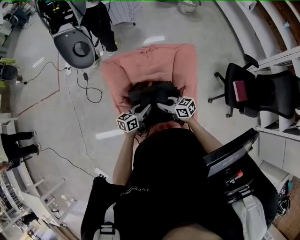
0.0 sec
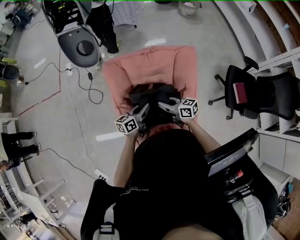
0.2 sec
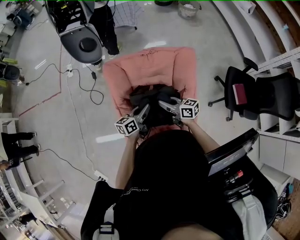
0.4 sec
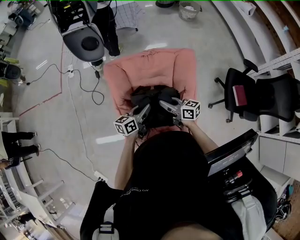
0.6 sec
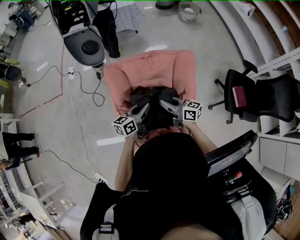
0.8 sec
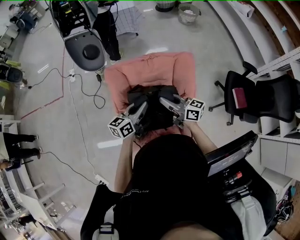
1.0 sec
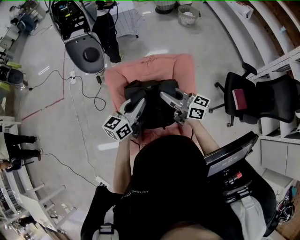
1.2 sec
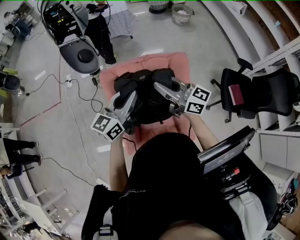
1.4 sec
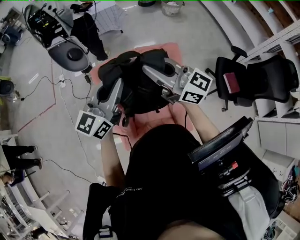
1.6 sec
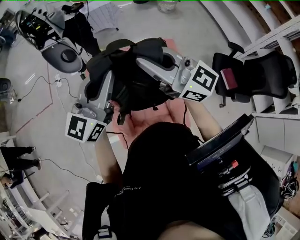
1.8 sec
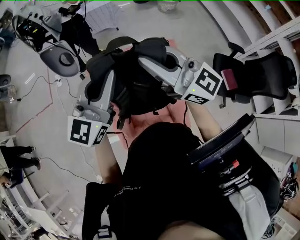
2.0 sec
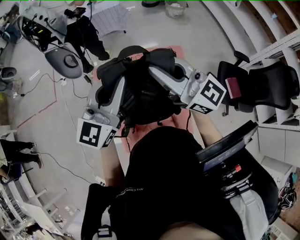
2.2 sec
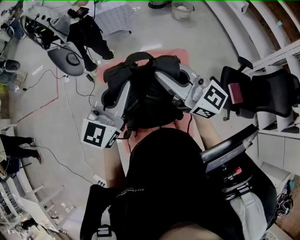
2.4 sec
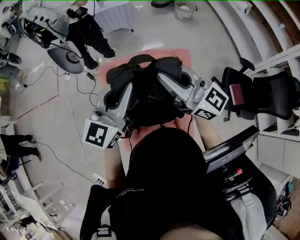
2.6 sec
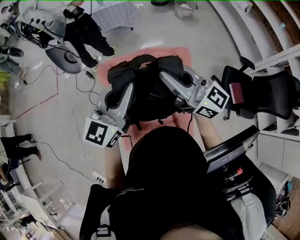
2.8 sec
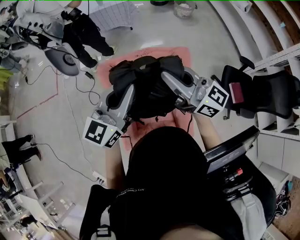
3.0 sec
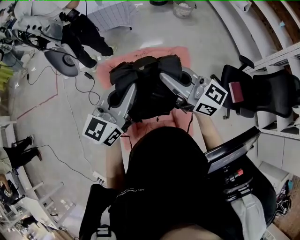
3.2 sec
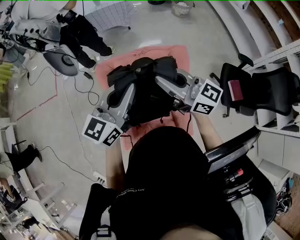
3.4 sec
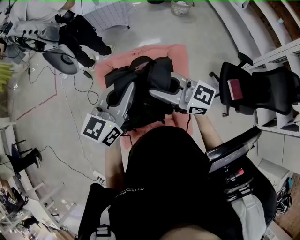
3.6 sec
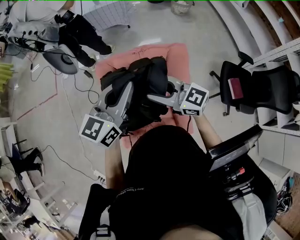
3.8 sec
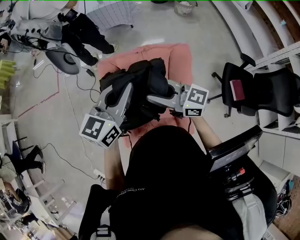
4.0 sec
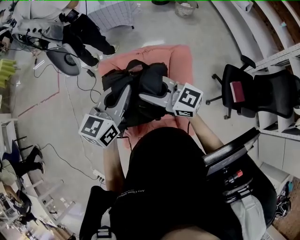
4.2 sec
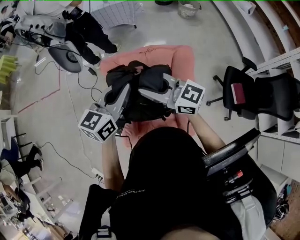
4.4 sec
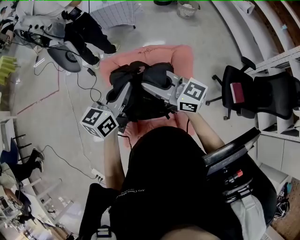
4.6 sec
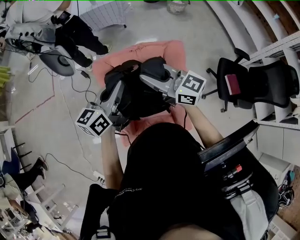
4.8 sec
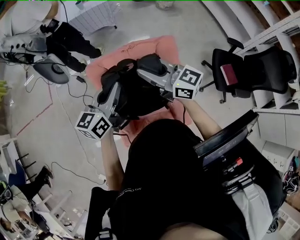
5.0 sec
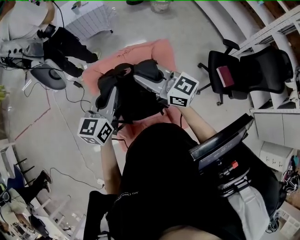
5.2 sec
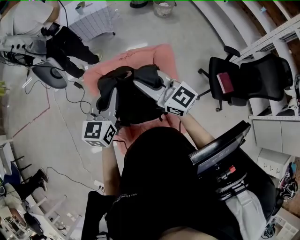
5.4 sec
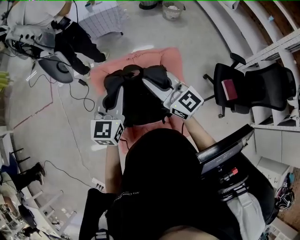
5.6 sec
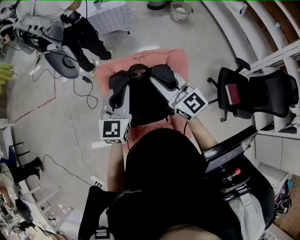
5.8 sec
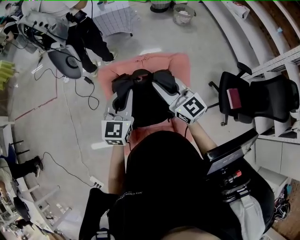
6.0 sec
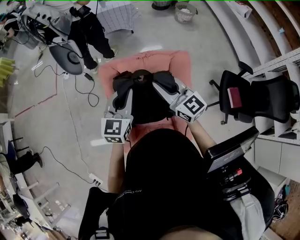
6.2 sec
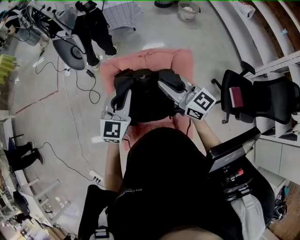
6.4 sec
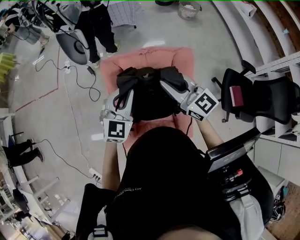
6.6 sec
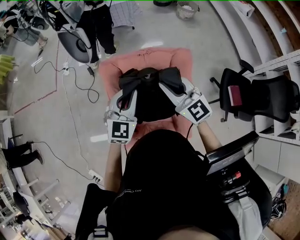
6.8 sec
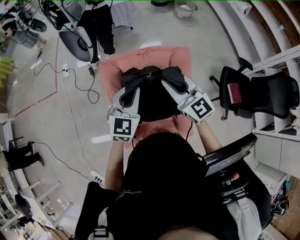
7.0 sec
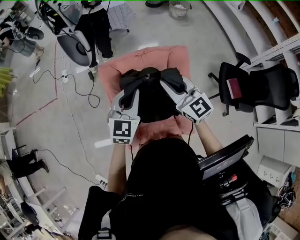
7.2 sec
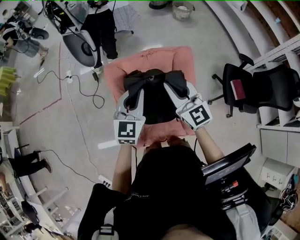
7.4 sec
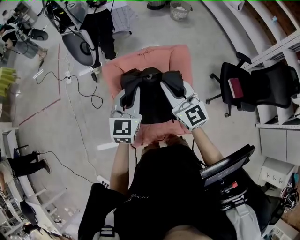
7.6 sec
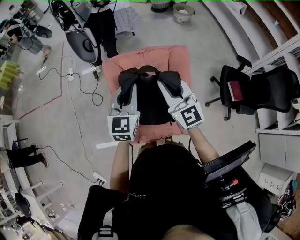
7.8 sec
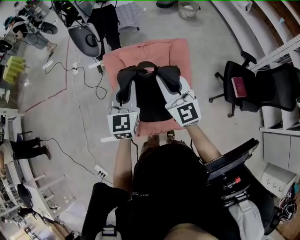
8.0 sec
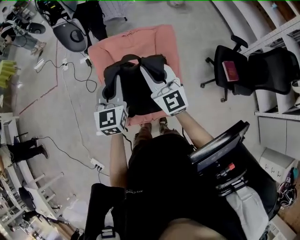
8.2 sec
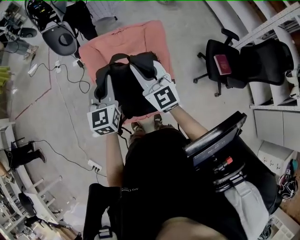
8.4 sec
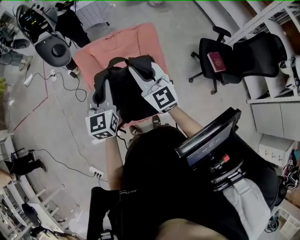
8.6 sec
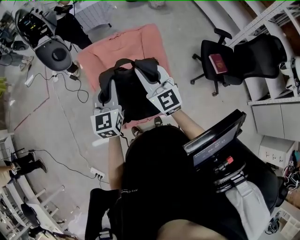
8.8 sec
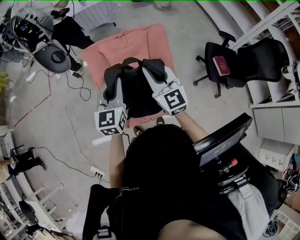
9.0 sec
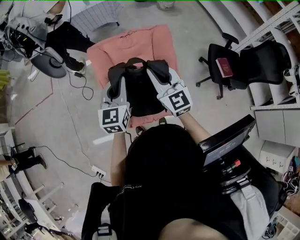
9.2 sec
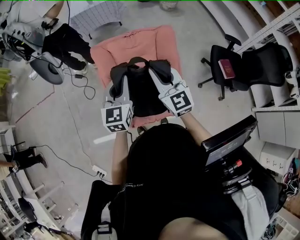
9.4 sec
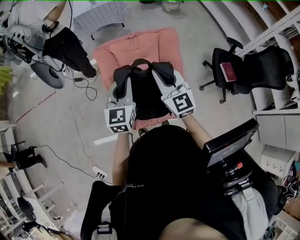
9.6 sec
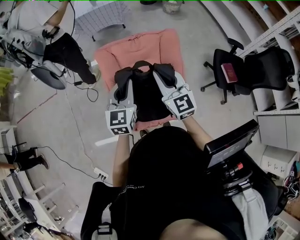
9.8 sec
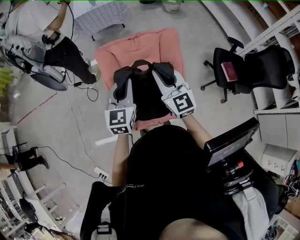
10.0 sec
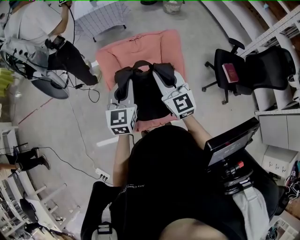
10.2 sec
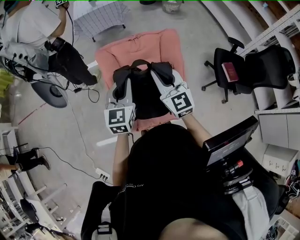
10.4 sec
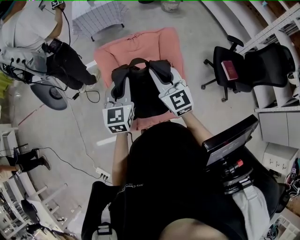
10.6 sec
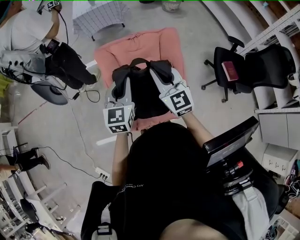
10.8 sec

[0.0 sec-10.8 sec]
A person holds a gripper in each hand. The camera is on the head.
0.0 sec to 1.6 sec: Both grippers move upward, approximately 35 cm. The left gripper changes its angle by some 40 degrees. The right gripper angles its fingers upward, by about 30 degrees.
3.0 sec to 4.6 sec: The left gripper shifts approximately 5 cm downward, and turns by roughly 20 degrees; the right gripper travels downward and to the left by approximately 10 cm.
4.6 sec to 6.2 sec: The left gripper rotates about 30 degrees; the right gripper ends up some 5 cm from where it was, and turns by about 20 degrees.
6.2 sec to 7.8 sec: The grippers both shift backward by roughly 10 cm. The right gripper rotates some 20 degrees.
7.8 sec to 9.2 sec: Both grippers travel together backward, approximately 10 cm.
9.2 sec to 10.8 sec: The grippers stay close to where they were, moving slightly.

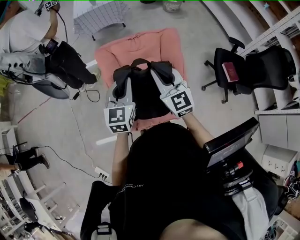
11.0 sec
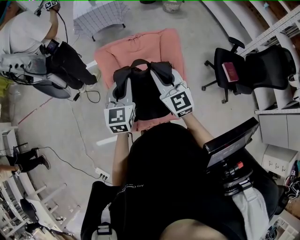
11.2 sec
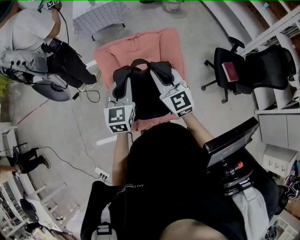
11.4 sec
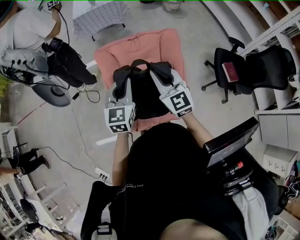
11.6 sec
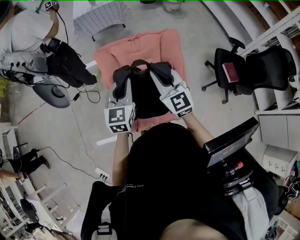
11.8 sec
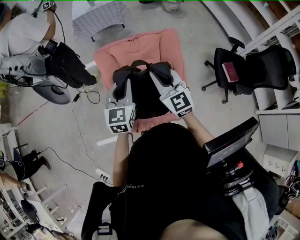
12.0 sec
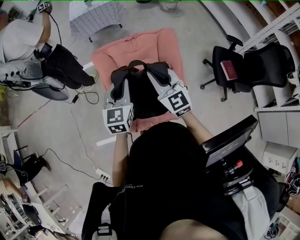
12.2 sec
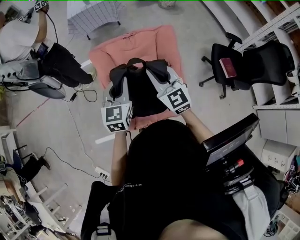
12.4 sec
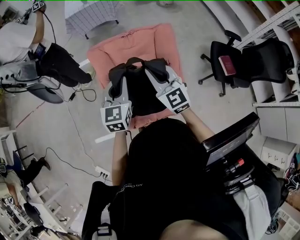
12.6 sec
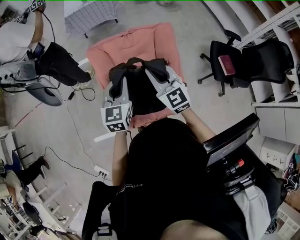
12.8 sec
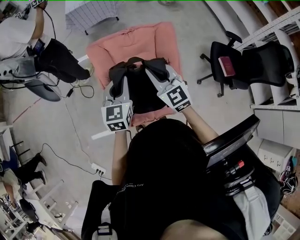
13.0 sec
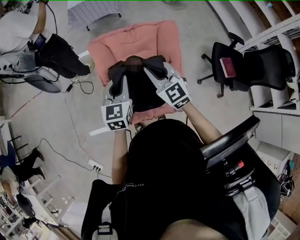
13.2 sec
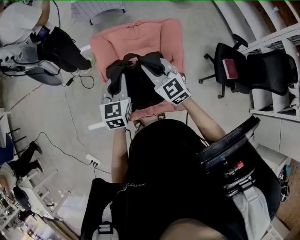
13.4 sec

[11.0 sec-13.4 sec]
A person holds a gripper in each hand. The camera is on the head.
11.0 sec to 12.2 sec: The grippers stay close to where they were, moving slightly.
12.2 sec to 13.4 sec: The grippers move only a little.

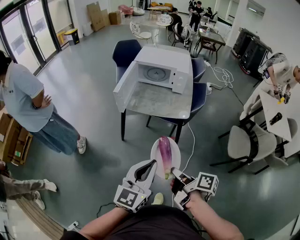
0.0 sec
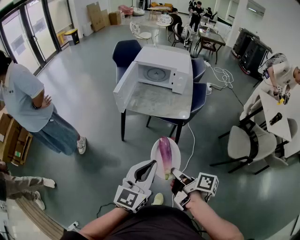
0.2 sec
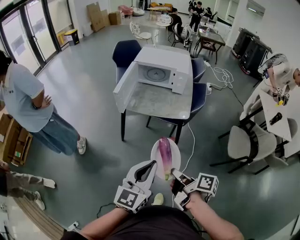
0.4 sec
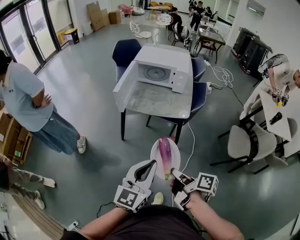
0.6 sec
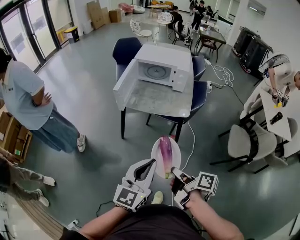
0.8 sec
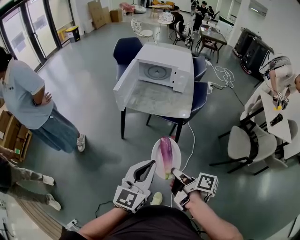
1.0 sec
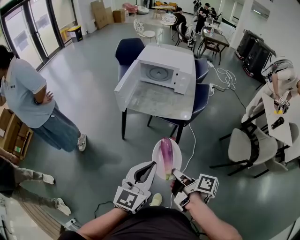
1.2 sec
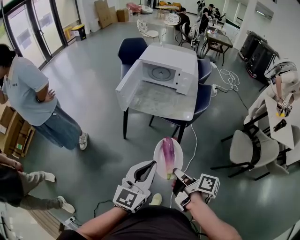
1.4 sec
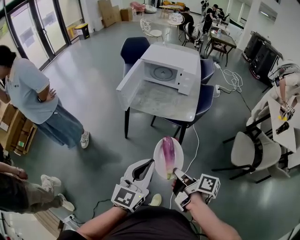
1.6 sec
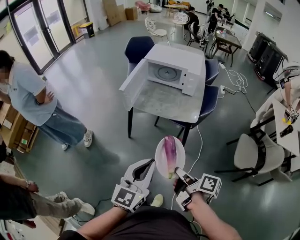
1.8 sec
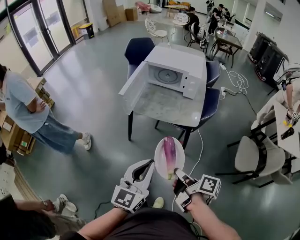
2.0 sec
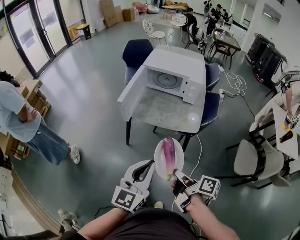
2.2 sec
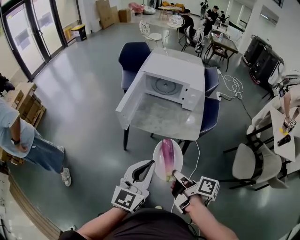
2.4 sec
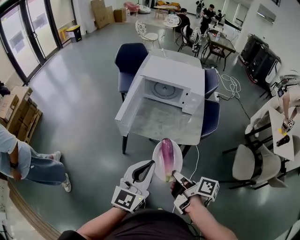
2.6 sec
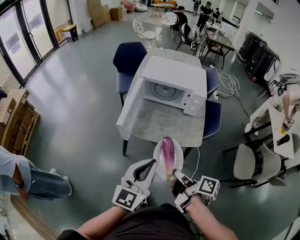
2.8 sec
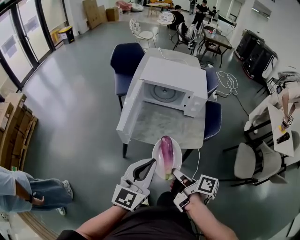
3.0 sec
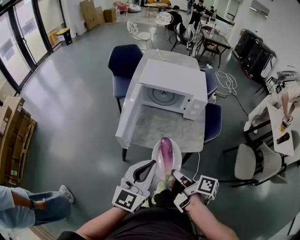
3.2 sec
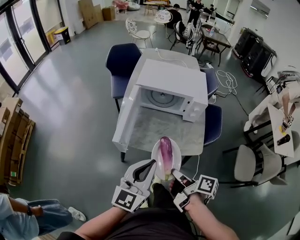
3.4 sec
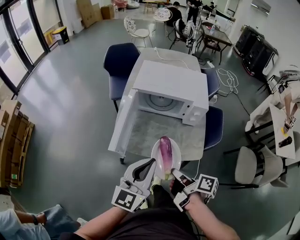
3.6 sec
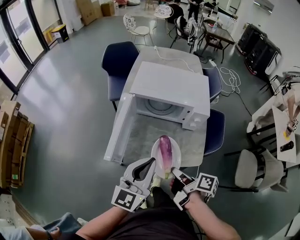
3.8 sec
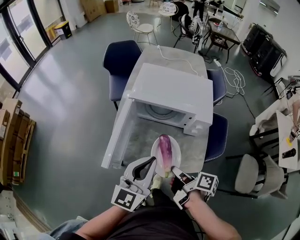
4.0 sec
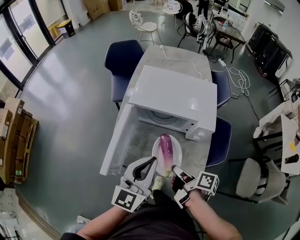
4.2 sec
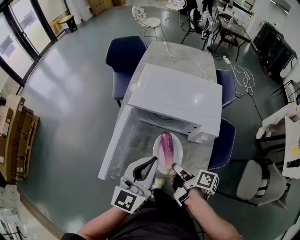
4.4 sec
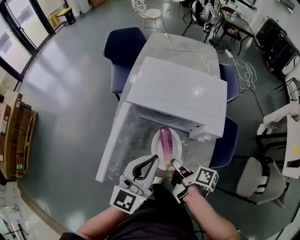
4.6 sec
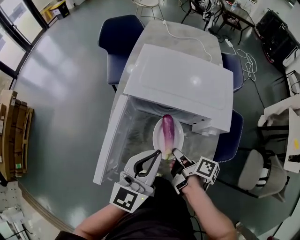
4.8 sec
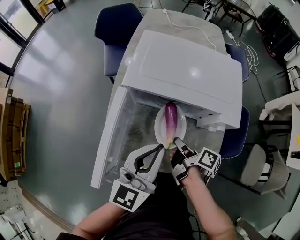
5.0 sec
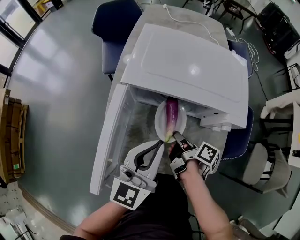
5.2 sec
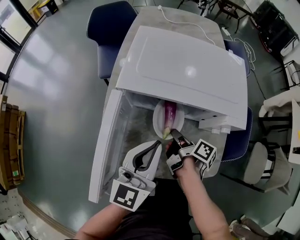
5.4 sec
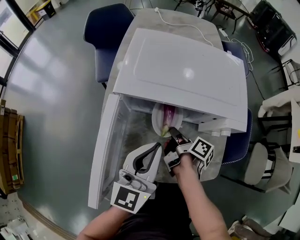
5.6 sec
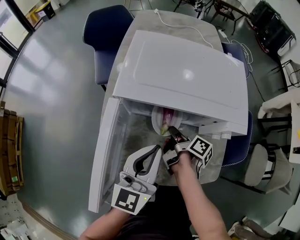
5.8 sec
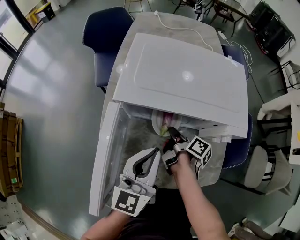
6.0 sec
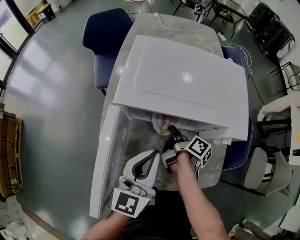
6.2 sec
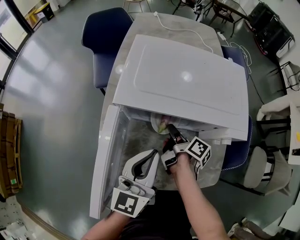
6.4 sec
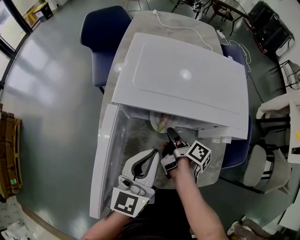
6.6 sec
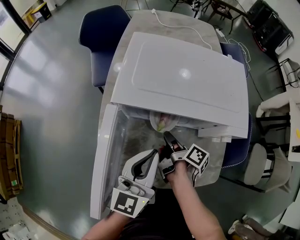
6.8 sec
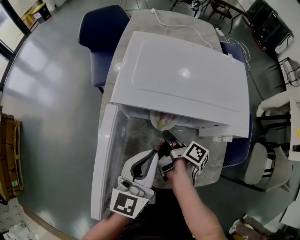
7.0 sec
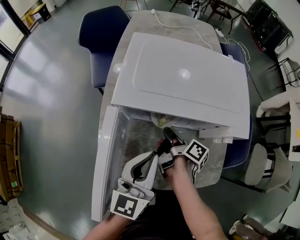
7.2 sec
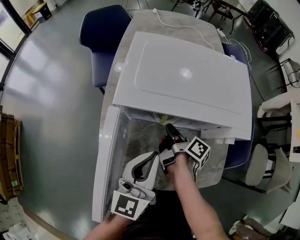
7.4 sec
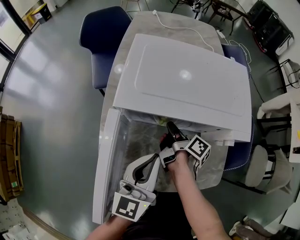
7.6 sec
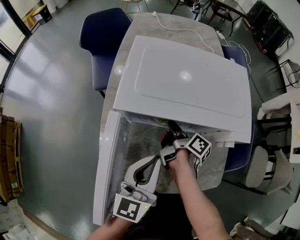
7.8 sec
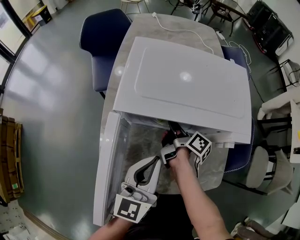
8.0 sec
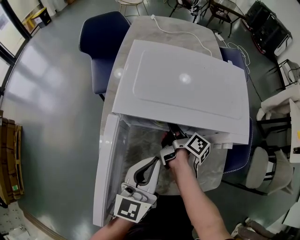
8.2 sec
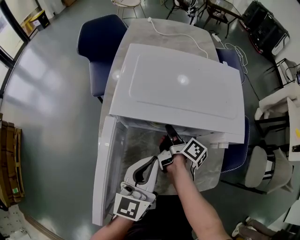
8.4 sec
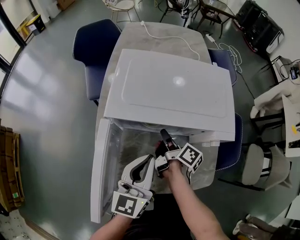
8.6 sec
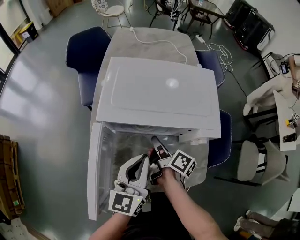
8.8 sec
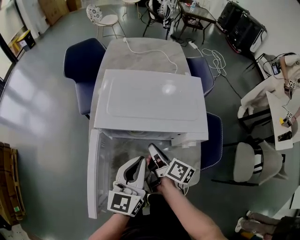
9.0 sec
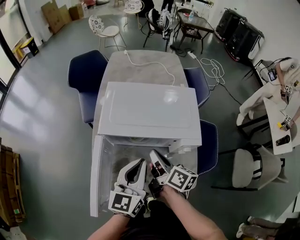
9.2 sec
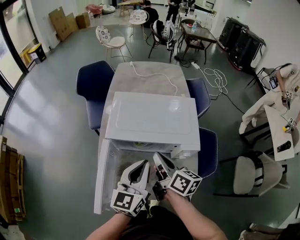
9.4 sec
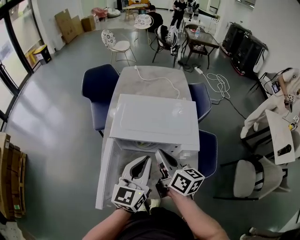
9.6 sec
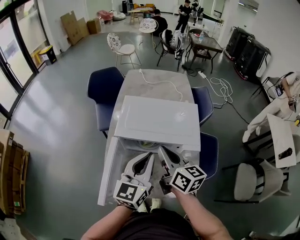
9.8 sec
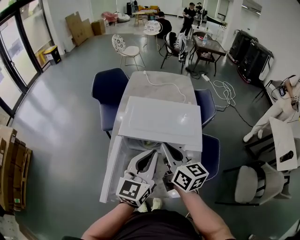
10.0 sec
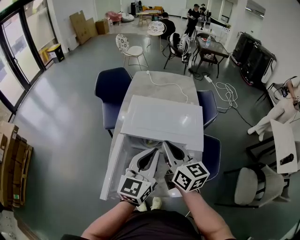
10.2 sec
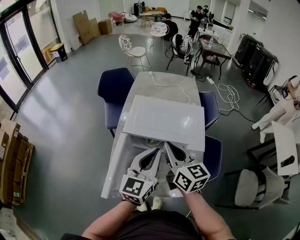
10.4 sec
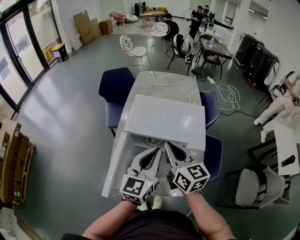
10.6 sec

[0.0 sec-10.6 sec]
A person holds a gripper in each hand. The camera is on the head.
1.6 sec to 3.0 sec: The left gripper moves approximately 25 cm.
3.0 sec to 4.6 sec: The left gripper shifts by about 30 cm.
4.6 sec to 6.0 sec: The left gripper is displaced downward by roughly 15 cm.
7.6 sec to 9.0 sec: The left gripper travels upward by roughly 5 cm.
9.0 sec to 10.6 sec: The left gripper goes some 15 cm upward.
